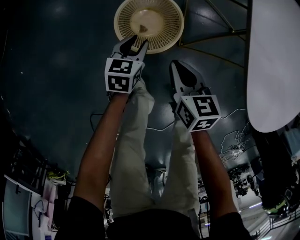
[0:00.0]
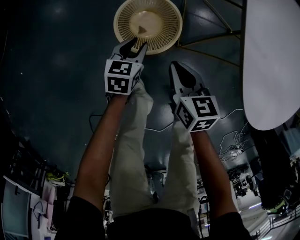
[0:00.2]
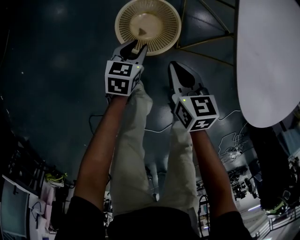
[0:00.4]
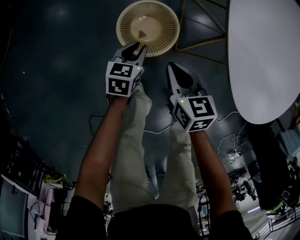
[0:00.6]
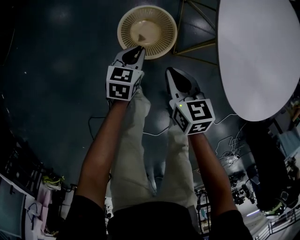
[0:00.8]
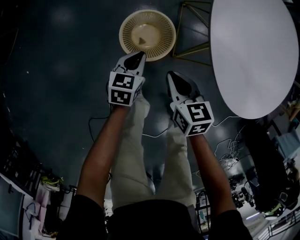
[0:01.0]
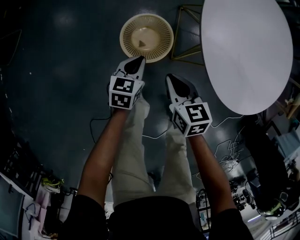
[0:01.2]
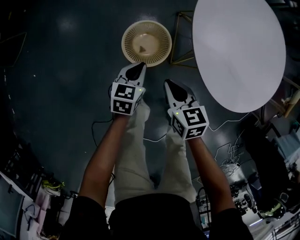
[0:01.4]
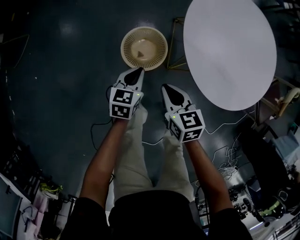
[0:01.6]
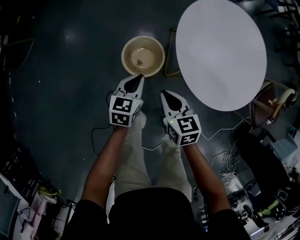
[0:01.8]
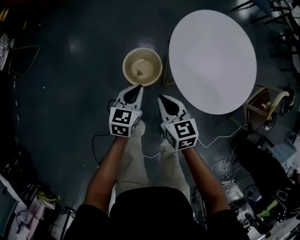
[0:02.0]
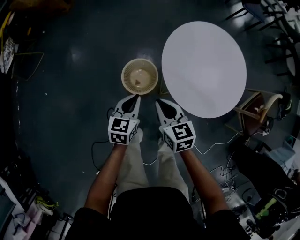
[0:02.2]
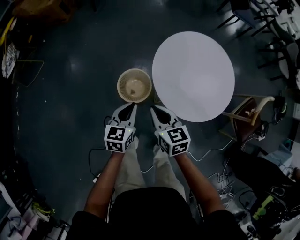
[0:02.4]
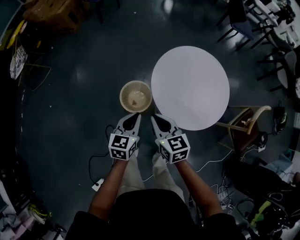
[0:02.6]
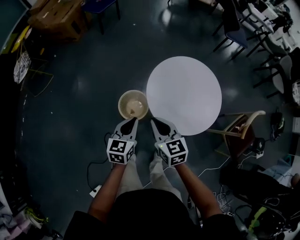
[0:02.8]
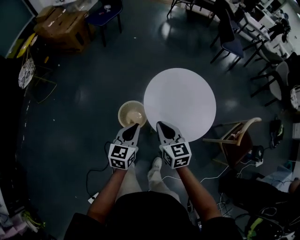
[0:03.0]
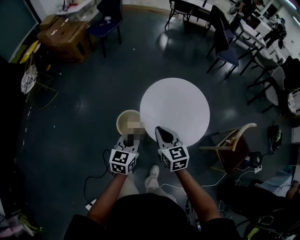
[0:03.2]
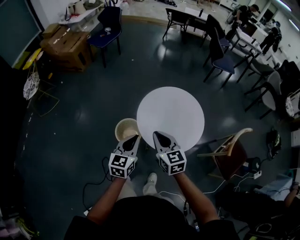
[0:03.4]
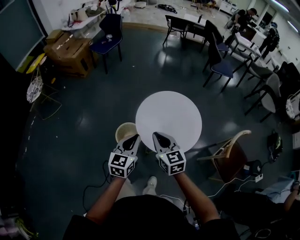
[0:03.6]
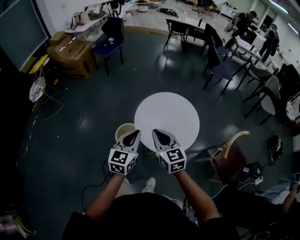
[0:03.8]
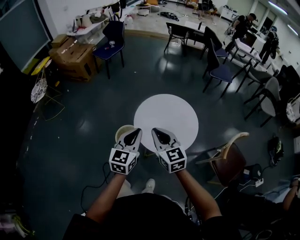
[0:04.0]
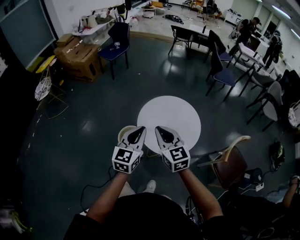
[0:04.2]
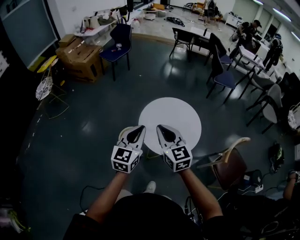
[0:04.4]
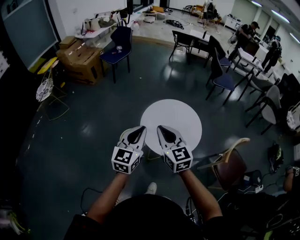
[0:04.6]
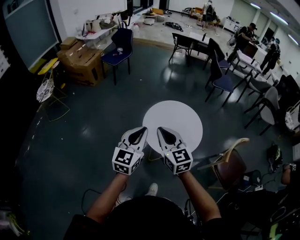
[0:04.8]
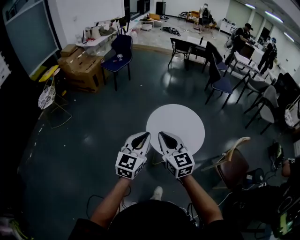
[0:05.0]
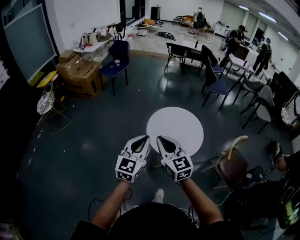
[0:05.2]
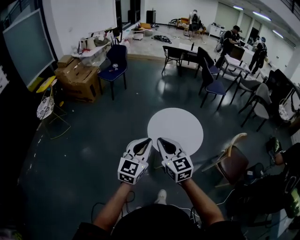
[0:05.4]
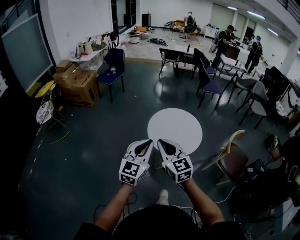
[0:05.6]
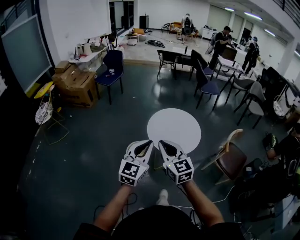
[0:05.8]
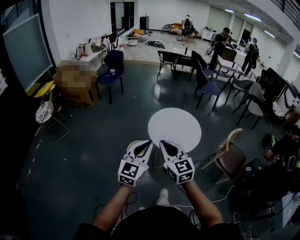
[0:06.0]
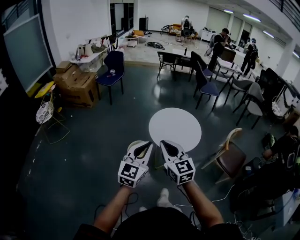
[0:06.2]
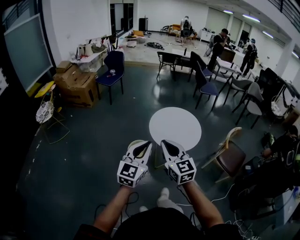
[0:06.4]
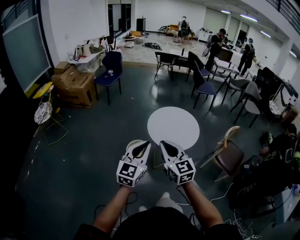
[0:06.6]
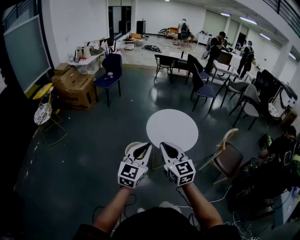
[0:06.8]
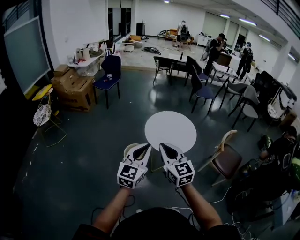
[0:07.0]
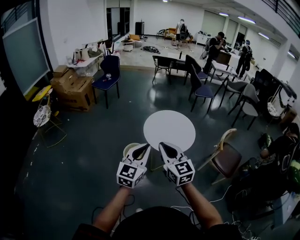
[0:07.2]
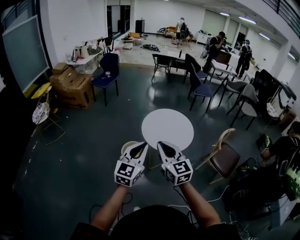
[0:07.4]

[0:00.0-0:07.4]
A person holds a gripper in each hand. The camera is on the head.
0:00.0 to 0:01.4: The two grippers go approximately 20 cm upward. The left gripper closes.
0:01.4 to 0:03.0: The grippers both shift upward by about 40 cm. The right gripper turns by approximately 20 degrees, while the left gripper rotates approximately 20 degrees.
0:03.0 to 0:04.4: The left gripper heads upward, to the right and backward, covering some 25 cm, and changes its angle by some 20 degrees; the right gripper travels upward, backward and to the right by roughly 20 cm, and changes its angle by about 20 degrees.
0:04.4 to 0:06.0: Both grippers travel together backward and to the left, approximately 25 cm.
0:06.0 to 0:07.4: The right gripper moves roughly 5 cm.

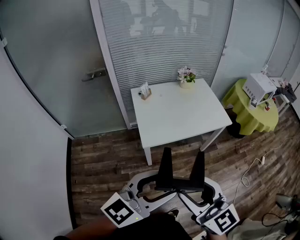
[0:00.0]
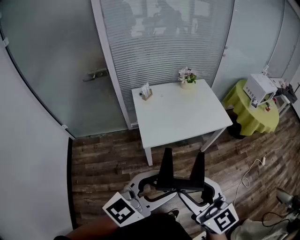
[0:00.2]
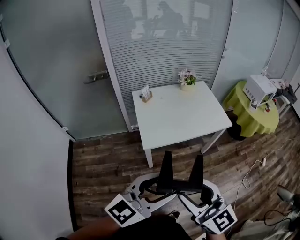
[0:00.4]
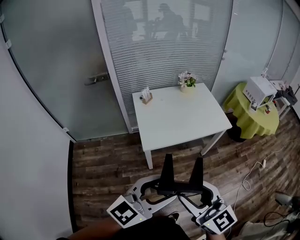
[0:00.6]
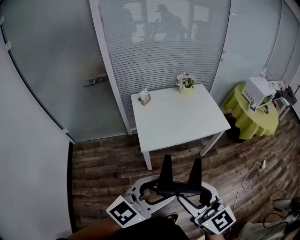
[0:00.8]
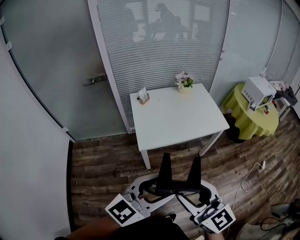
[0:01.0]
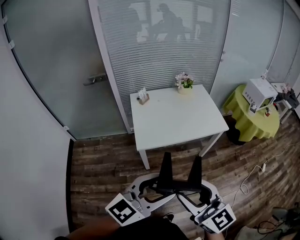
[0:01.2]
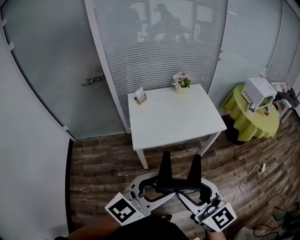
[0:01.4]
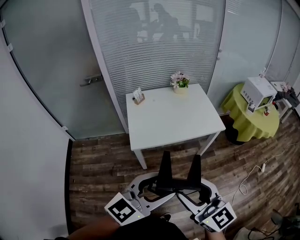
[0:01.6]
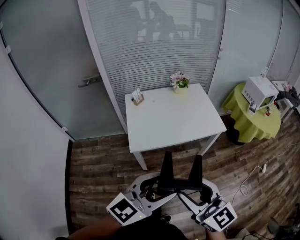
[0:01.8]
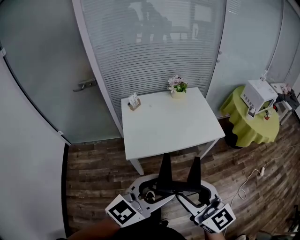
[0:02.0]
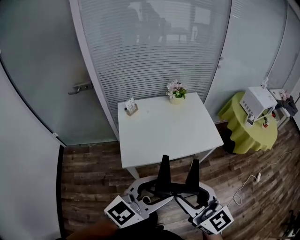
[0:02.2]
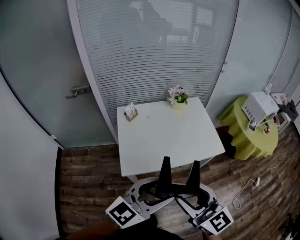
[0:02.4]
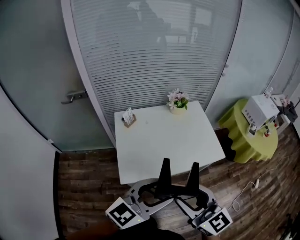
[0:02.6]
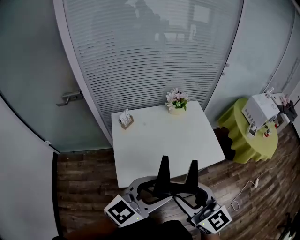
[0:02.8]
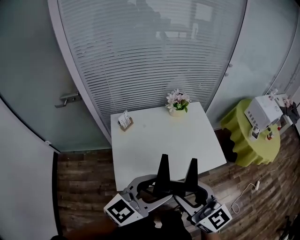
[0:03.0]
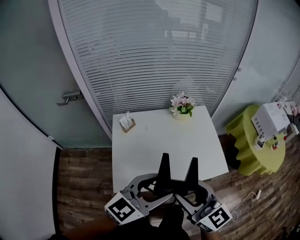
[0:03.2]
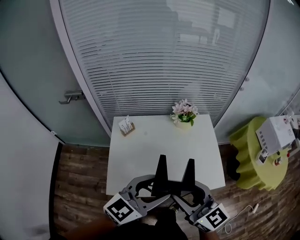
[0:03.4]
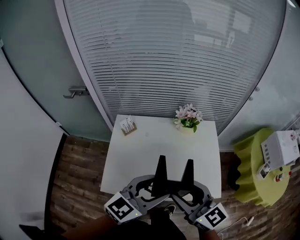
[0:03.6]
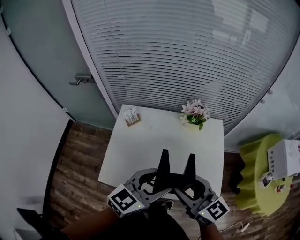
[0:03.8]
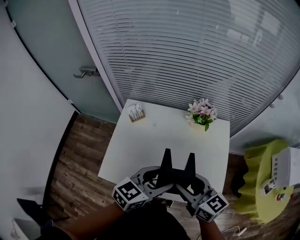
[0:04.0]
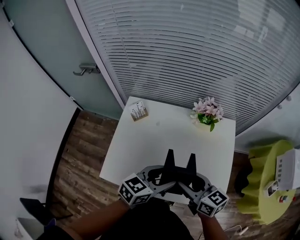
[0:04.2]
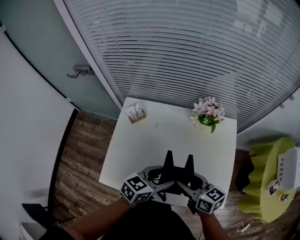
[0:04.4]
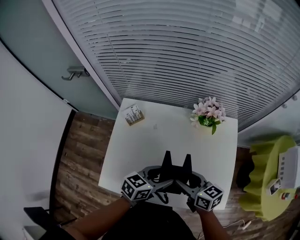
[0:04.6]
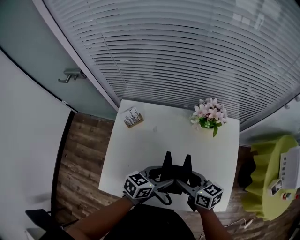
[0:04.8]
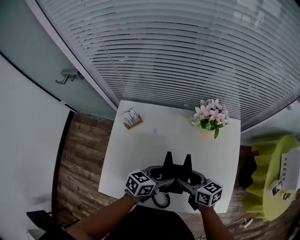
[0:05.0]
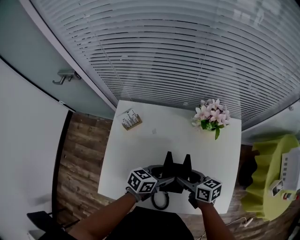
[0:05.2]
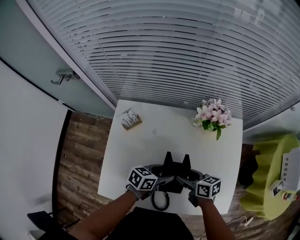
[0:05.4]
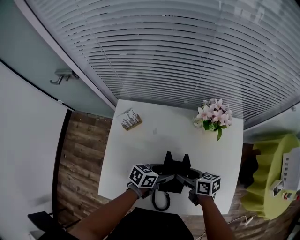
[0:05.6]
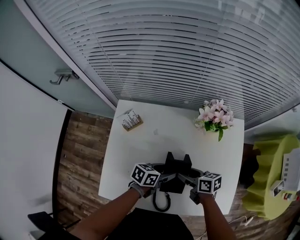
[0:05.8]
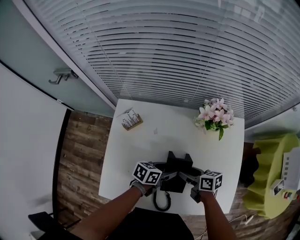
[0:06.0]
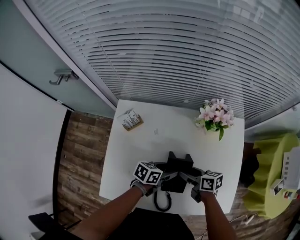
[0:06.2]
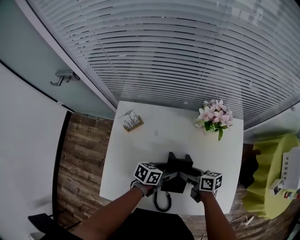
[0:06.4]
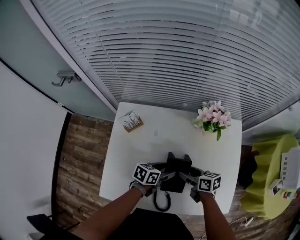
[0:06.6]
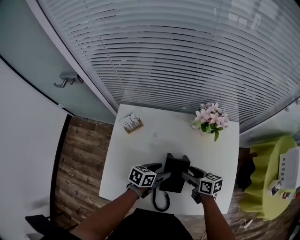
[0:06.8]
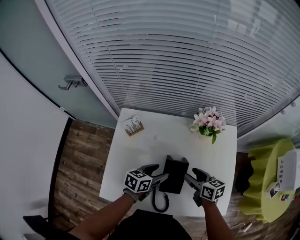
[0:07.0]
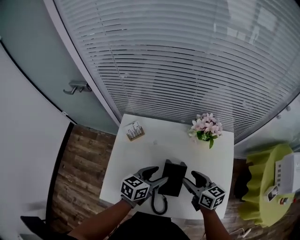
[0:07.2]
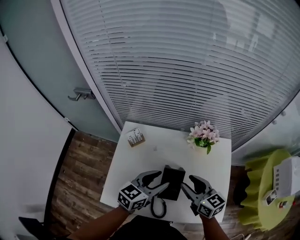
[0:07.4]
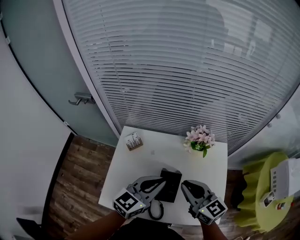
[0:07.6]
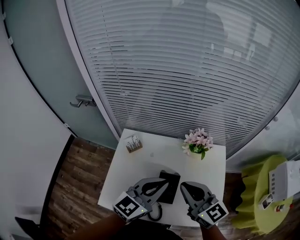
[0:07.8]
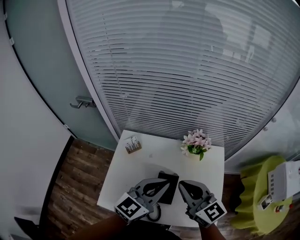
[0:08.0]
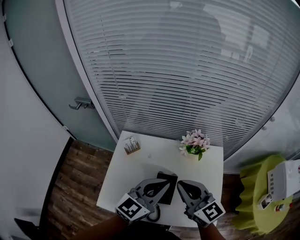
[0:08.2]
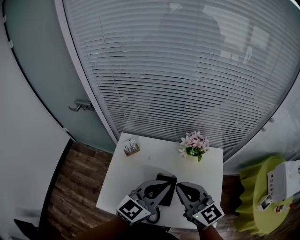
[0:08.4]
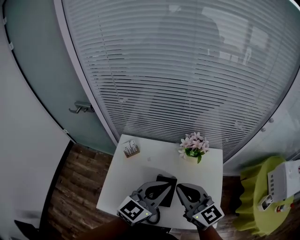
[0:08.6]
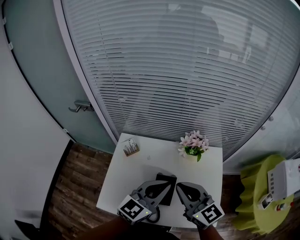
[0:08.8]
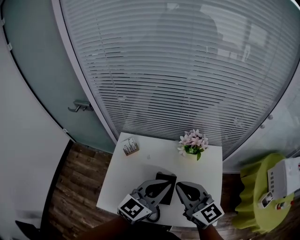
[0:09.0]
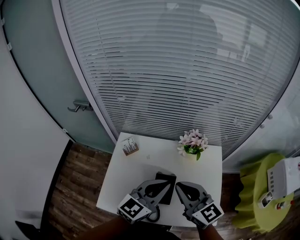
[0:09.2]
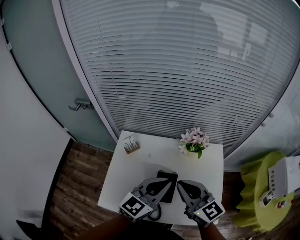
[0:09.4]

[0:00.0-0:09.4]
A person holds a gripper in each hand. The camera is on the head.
0:00.0 to 0:01.6: Both grippers travel together to the right, roughly 15 cm.
0:01.6 to 0:03.2: The two grippers go approximately 35 cm forward.
0:03.2 to 0:04.8: Both grippers travel together downward and forward, roughly 35 cm. The left gripper rotates roughly 40 degrees; the right gripper swivels some 40 degrees.
0:04.8 to 0:06.2: The two grippers go roughly 10 cm downward.
0:06.2 to 0:07.8: The grippers both shift upward by roughly 35 cm. The left gripper swivels some 60 degrees, and closes its fingers, while the right gripper rotates around the line of its fingers by some 50 degrees, counterclockwise from behind, and closes up.
0:07.8 to 0:09.4: The grippers move only a little.

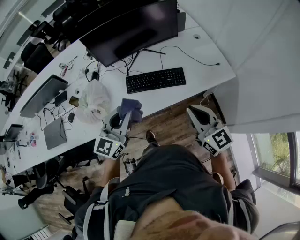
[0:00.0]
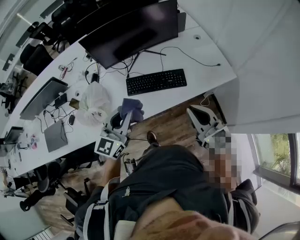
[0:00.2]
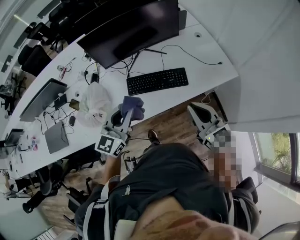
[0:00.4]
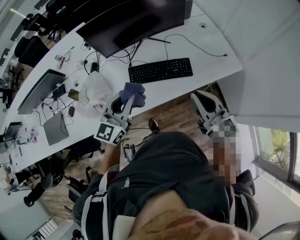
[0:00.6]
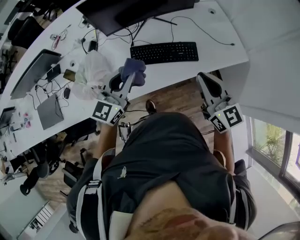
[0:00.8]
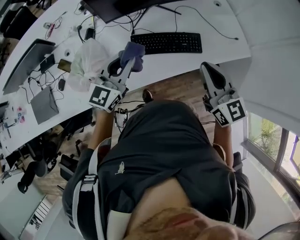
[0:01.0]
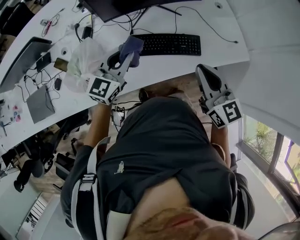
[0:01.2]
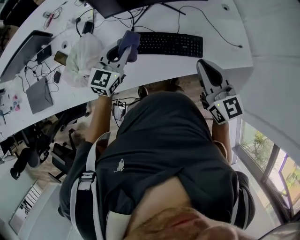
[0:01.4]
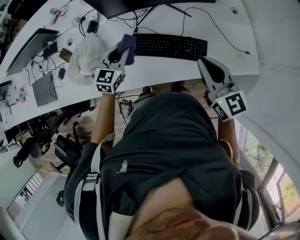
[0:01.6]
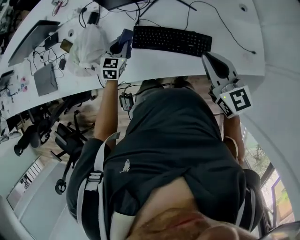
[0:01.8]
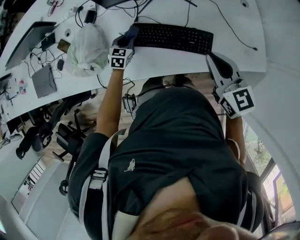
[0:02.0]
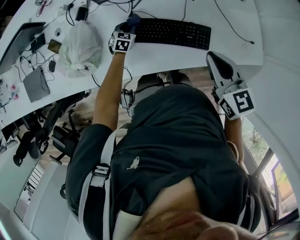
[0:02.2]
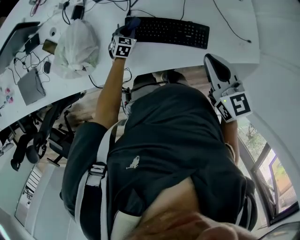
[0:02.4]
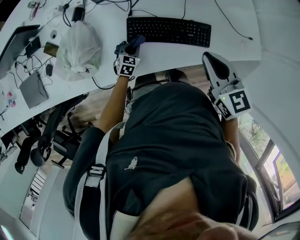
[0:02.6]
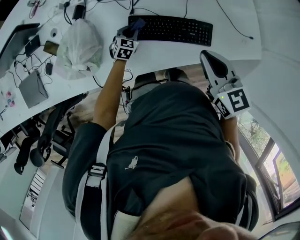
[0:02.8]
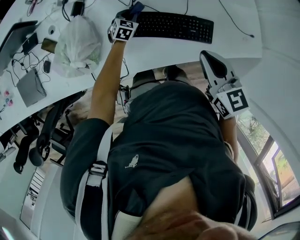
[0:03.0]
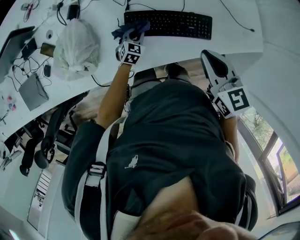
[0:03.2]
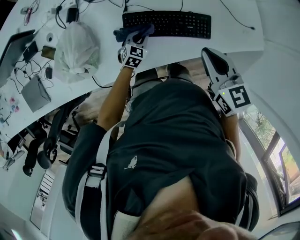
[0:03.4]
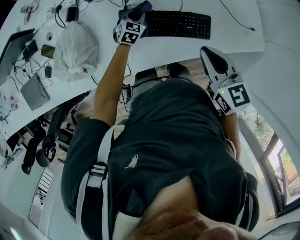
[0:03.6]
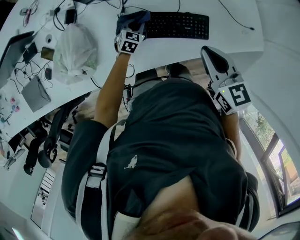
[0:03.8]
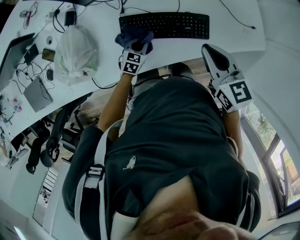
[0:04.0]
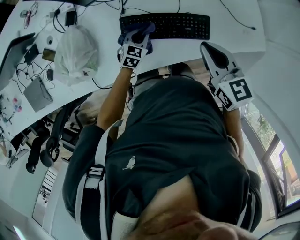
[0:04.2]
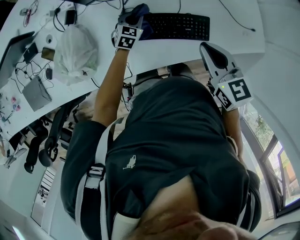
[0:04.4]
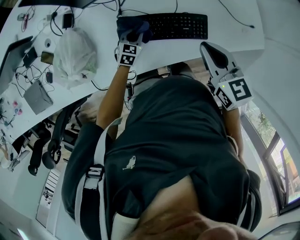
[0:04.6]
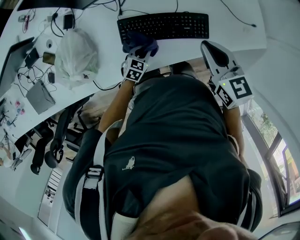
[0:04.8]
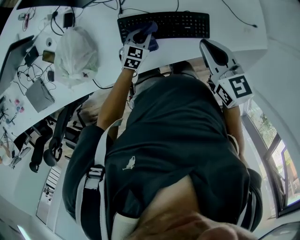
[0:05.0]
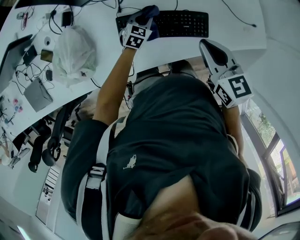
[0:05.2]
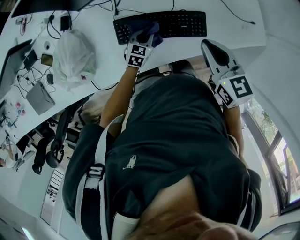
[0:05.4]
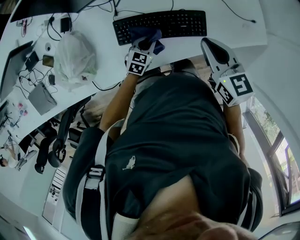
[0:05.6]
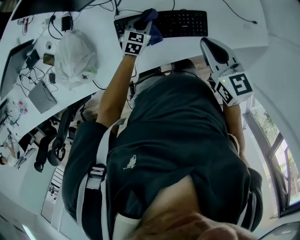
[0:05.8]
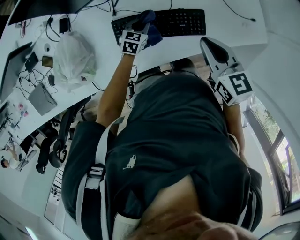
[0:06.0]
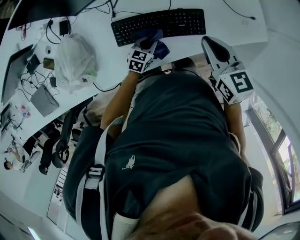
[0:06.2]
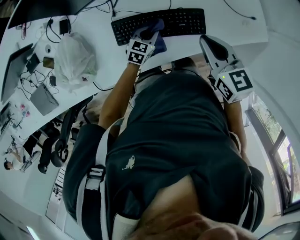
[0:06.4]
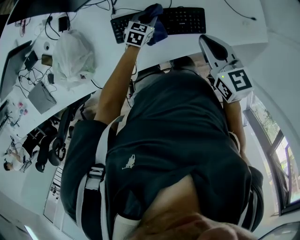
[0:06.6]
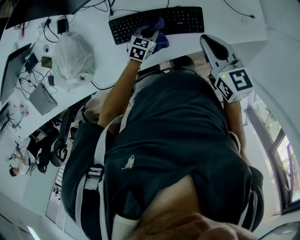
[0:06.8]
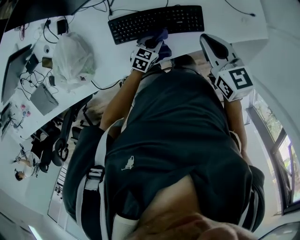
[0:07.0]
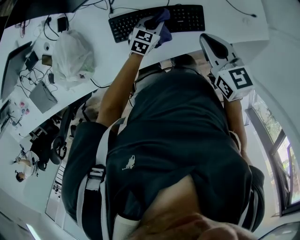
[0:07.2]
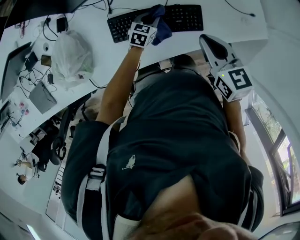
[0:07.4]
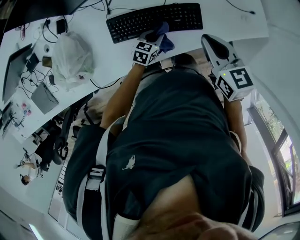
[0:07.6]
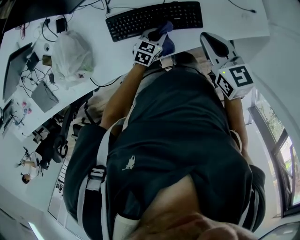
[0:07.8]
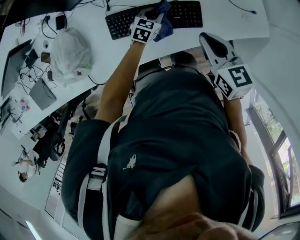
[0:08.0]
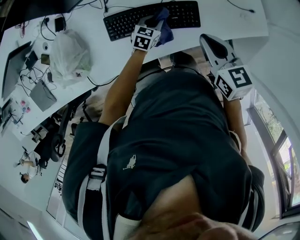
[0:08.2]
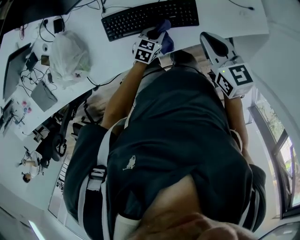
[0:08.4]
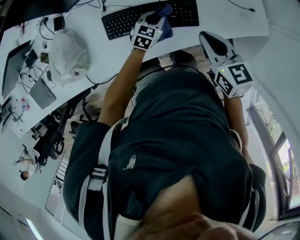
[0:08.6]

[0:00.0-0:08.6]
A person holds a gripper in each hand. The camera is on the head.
0:00.0 to 0:01.4: The right gripper shifts about 20 cm forward and to the left. Meanwhile the left gripper goes some 25 cm forward and downward.
0:01.4 to 0:02.8: The left gripper is displaced downward by roughly 30 cm, and turns by about 30 degrees; the right gripper goes roughly 5 cm downward.
0:02.8 to 0:04.4: The right gripper ends up about 5 cm from where it was, while the left gripper swings forward and backward, approximately 15 cm each way, with 4 reversals.
0:04.4 to 0:05.8: The left gripper swings forward and backward, roughly 15 cm each way, with 3 reversals.
0:05.8 to 0:07.2: The left gripper goes forward and backward, some 10 cm each way, reversing 3 times.
0:07.2 to 0:08.6: The left gripper moves forward and backward over roughly 10 cm, changing direction 3 times.
